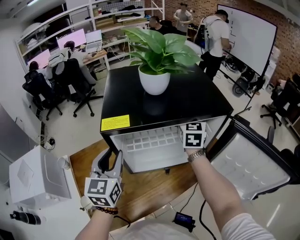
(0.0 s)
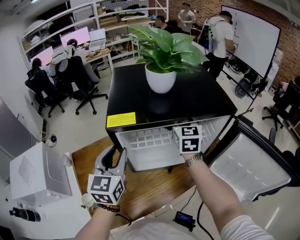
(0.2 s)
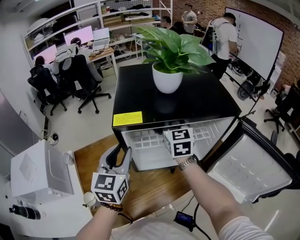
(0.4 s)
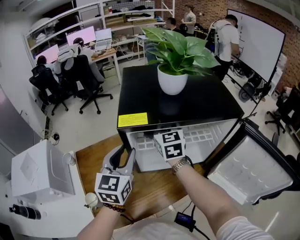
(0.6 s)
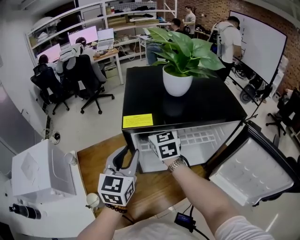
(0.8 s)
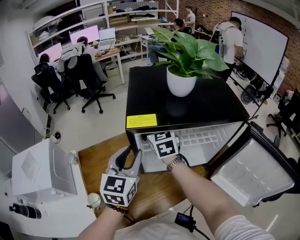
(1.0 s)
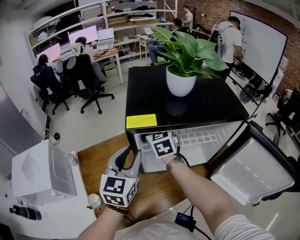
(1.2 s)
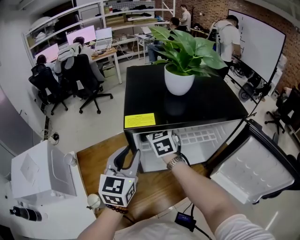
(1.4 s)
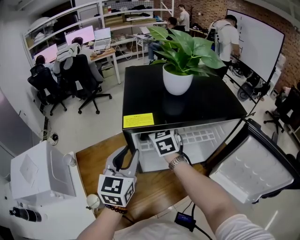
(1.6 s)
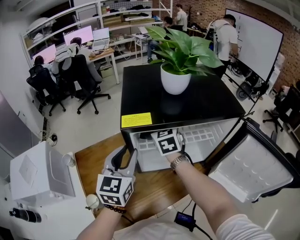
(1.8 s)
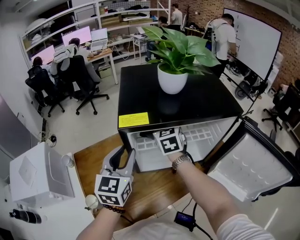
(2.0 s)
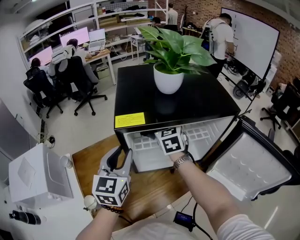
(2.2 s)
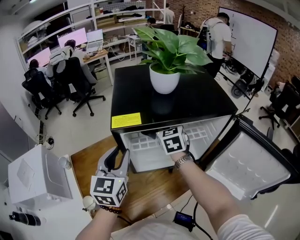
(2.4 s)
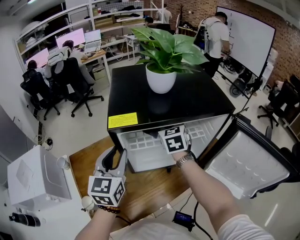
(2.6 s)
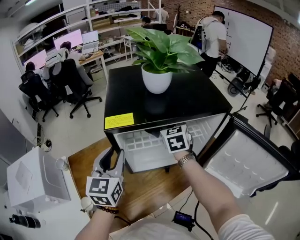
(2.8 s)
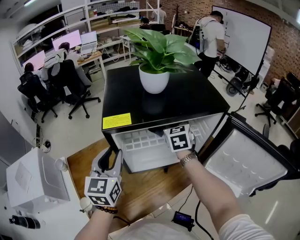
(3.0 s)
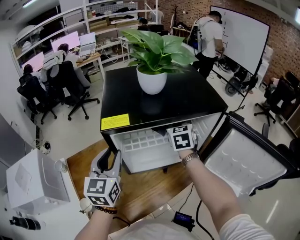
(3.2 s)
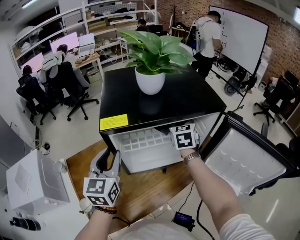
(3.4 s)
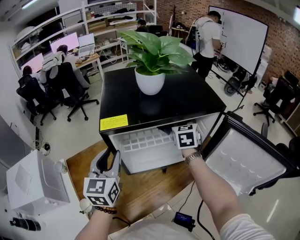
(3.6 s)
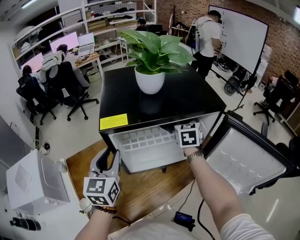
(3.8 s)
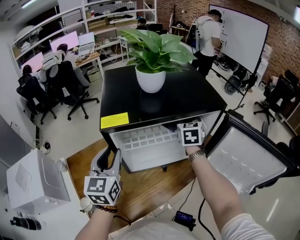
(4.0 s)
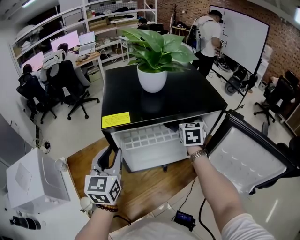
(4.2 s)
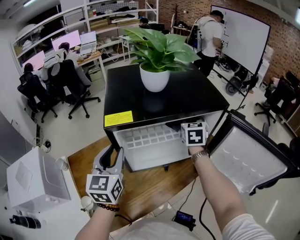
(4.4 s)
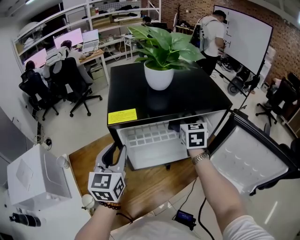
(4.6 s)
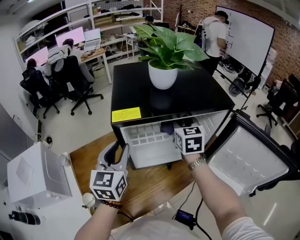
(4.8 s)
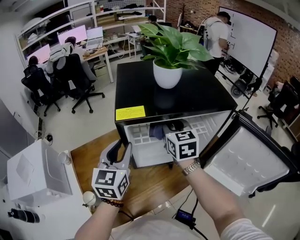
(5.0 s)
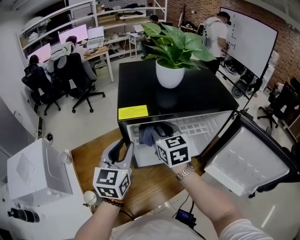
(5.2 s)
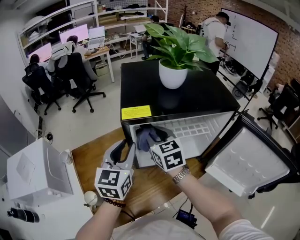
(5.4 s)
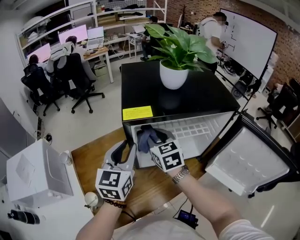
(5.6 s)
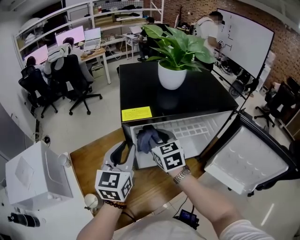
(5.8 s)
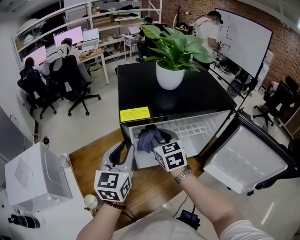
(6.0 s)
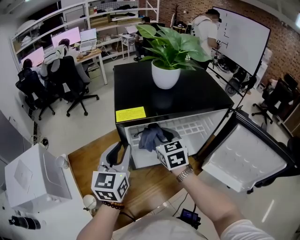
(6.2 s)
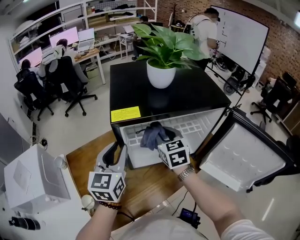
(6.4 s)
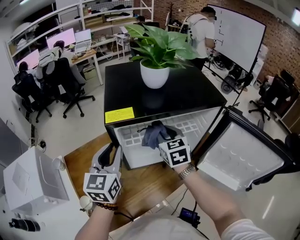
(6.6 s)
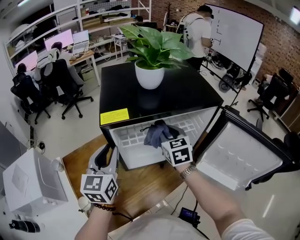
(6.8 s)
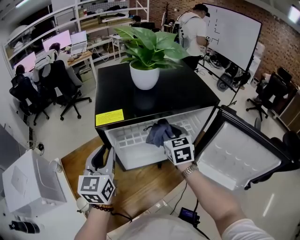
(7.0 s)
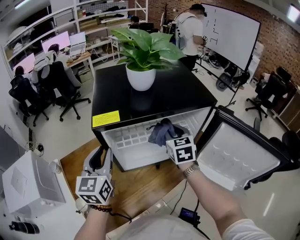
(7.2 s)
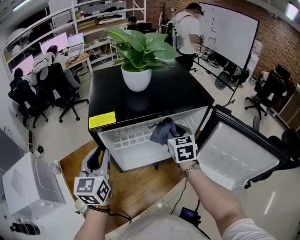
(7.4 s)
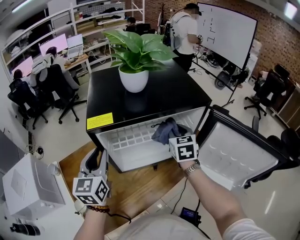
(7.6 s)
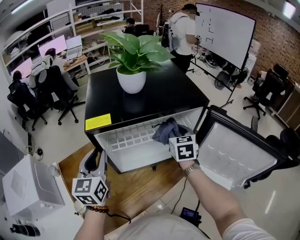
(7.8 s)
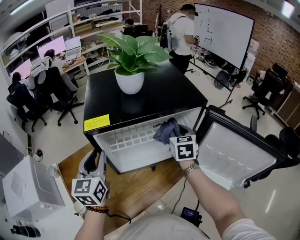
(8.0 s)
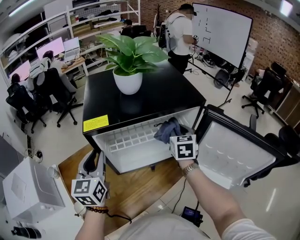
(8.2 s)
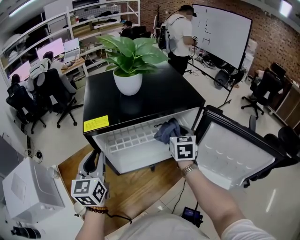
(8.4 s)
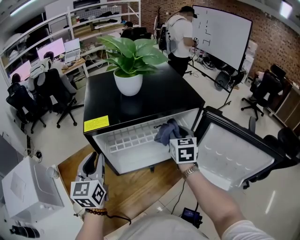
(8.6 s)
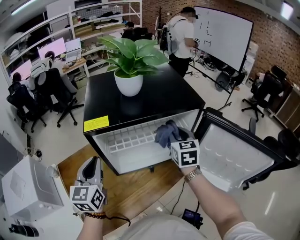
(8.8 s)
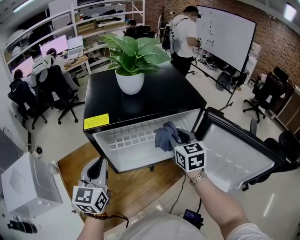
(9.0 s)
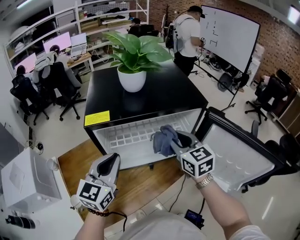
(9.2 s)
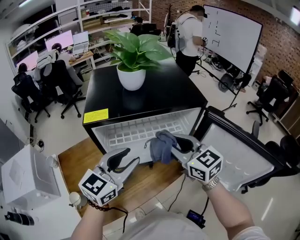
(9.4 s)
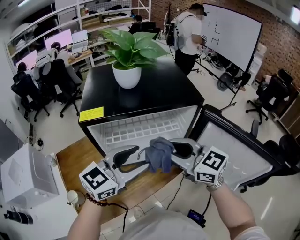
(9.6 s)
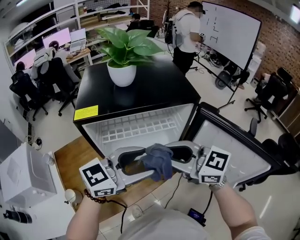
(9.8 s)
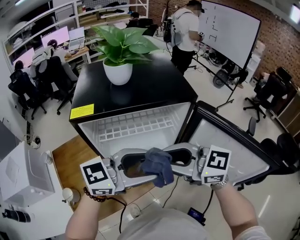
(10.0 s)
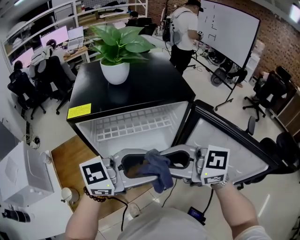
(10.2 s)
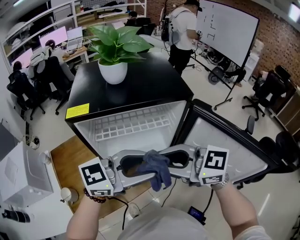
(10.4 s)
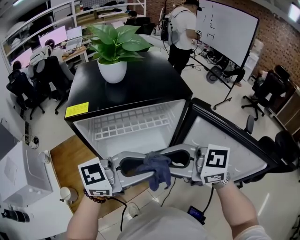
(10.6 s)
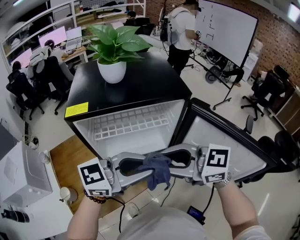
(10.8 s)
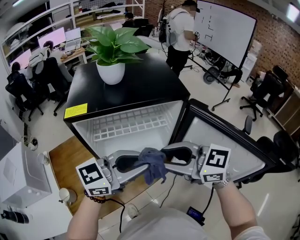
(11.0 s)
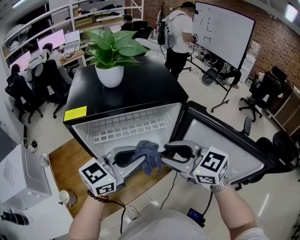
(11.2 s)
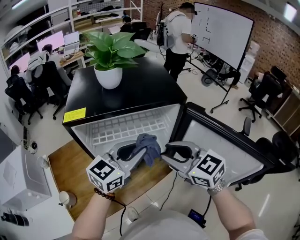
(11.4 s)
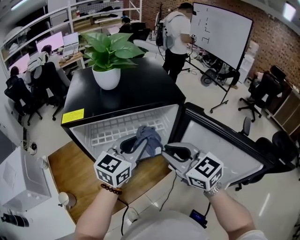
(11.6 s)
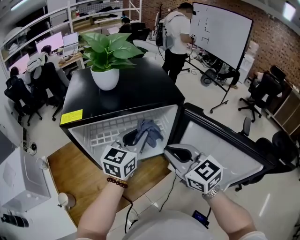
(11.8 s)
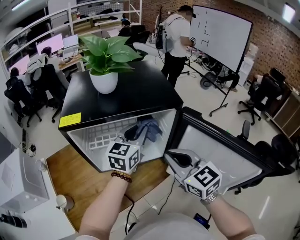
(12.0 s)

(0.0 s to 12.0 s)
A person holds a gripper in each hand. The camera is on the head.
0.0 s - 1.6 s: The right gripper travels to the left by some 20 cm, and rotates roughly 20 degrees.
1.6 s - 3.0 s: The right gripper travels to the right by some 15 cm.
3.0 s - 4.4 s: The right gripper is displaced to the right by approximately 10 cm.
4.4 s - 6.0 s: The right gripper travels to the left and backward by about 20 cm, and changes its angle by approximately 20 degrees.
6.0 s - 7.6 s: The right gripper moves to the right, approximately 20 cm.
7.6 s - 9.0 s: The right gripper changes place by some 5 cm.
9.0 s - 10.4 s: The right gripper moves approximately 20 cm, and changes its angle by approximately 60 degrees. The left gripper moves approximately 25 cm, changes its angle by about 60 degrees, and opens.
10.4 s - 12.0 s: The left gripper moves approximately 20 cm, changes its angle by about 40 degrees, and closes; the right gripper ends up some 10 cm from where it was, changes its angle by some 40 degrees, and closes its fingers.

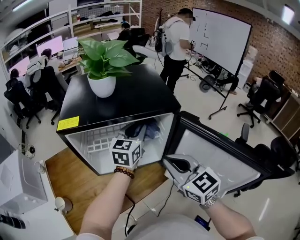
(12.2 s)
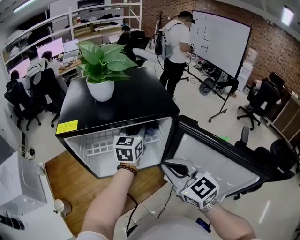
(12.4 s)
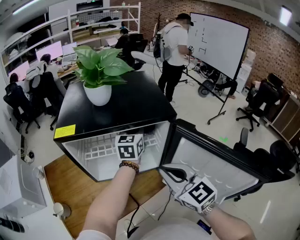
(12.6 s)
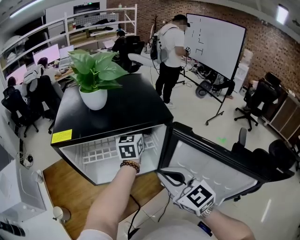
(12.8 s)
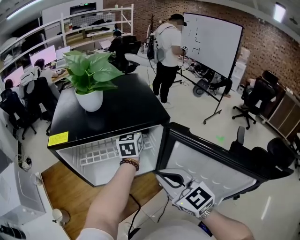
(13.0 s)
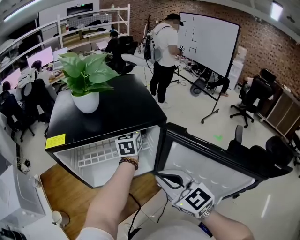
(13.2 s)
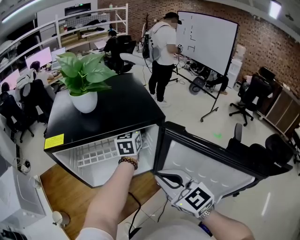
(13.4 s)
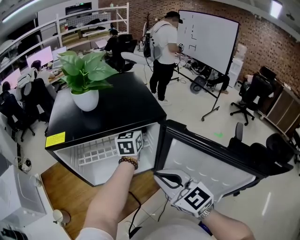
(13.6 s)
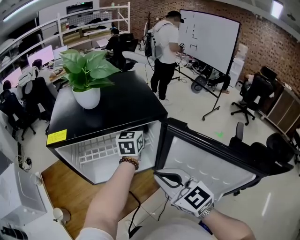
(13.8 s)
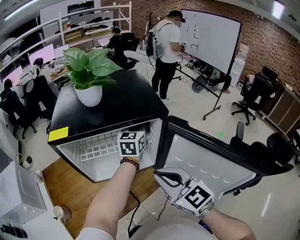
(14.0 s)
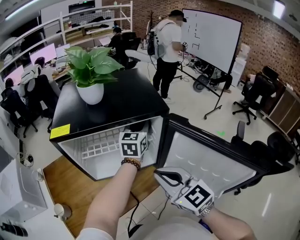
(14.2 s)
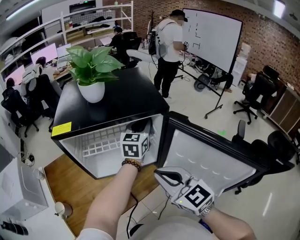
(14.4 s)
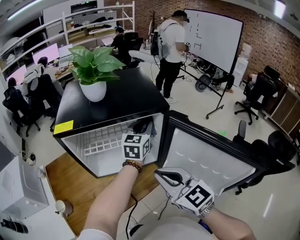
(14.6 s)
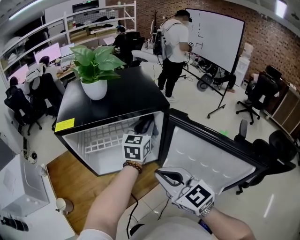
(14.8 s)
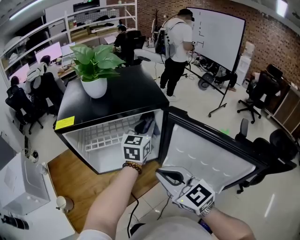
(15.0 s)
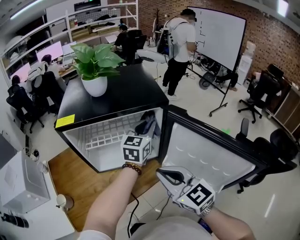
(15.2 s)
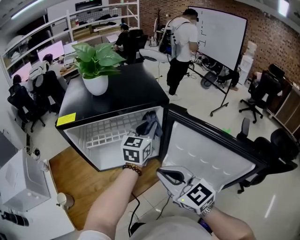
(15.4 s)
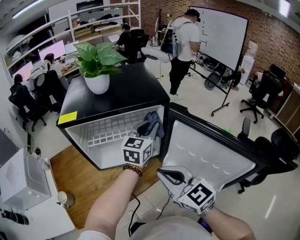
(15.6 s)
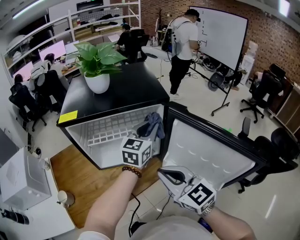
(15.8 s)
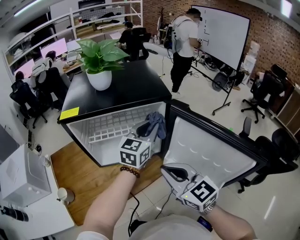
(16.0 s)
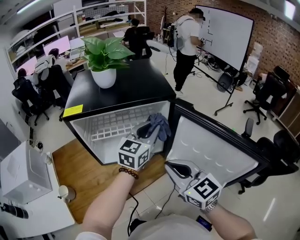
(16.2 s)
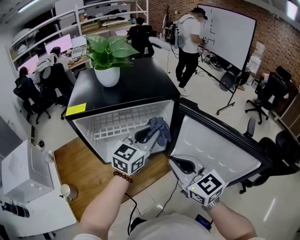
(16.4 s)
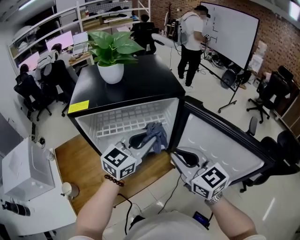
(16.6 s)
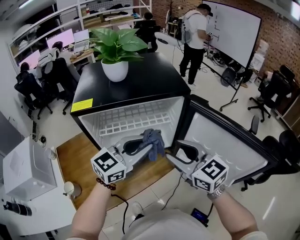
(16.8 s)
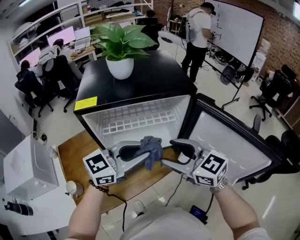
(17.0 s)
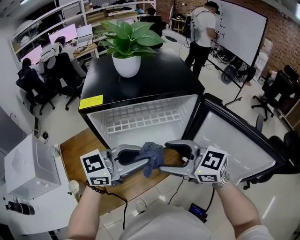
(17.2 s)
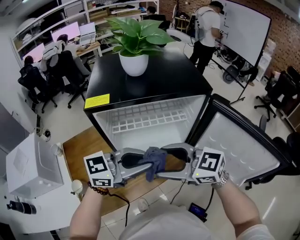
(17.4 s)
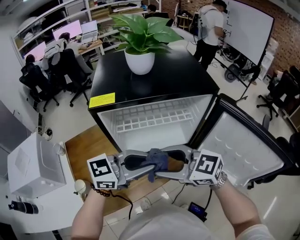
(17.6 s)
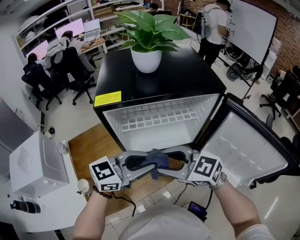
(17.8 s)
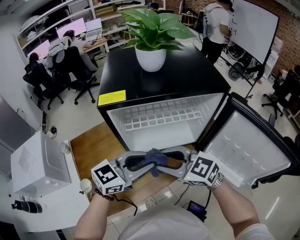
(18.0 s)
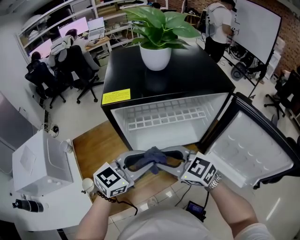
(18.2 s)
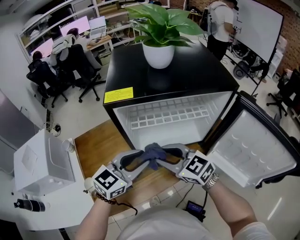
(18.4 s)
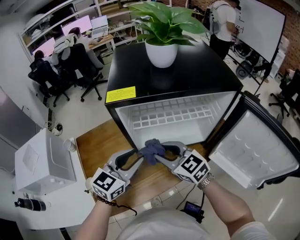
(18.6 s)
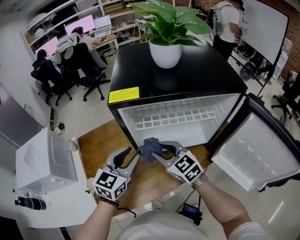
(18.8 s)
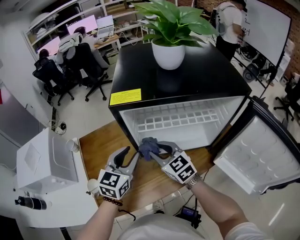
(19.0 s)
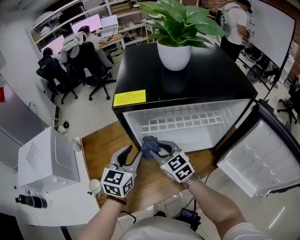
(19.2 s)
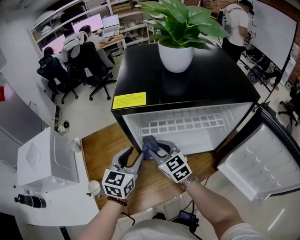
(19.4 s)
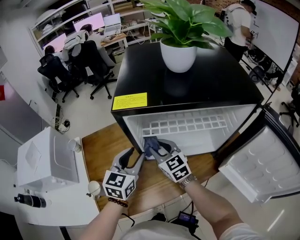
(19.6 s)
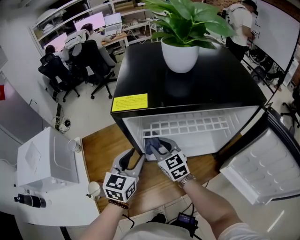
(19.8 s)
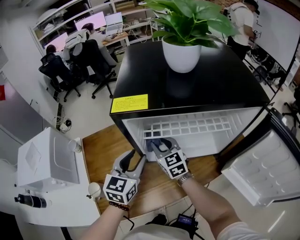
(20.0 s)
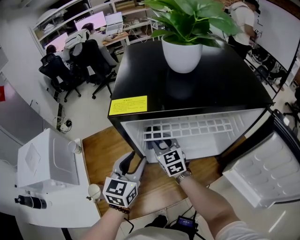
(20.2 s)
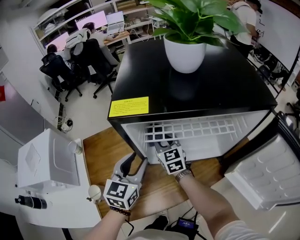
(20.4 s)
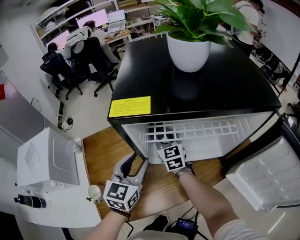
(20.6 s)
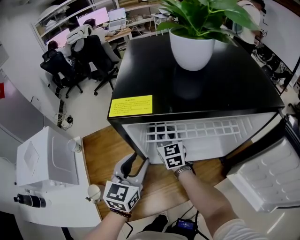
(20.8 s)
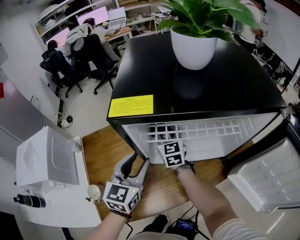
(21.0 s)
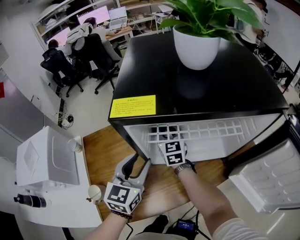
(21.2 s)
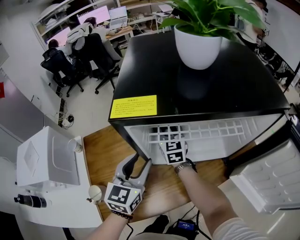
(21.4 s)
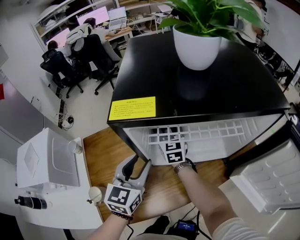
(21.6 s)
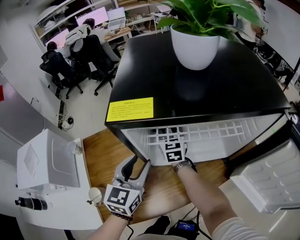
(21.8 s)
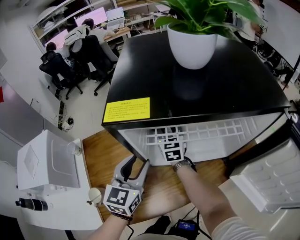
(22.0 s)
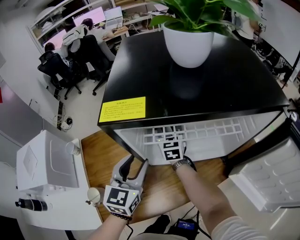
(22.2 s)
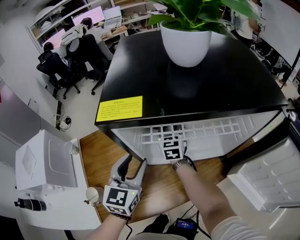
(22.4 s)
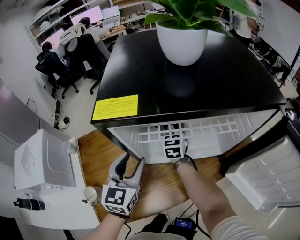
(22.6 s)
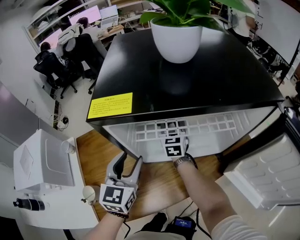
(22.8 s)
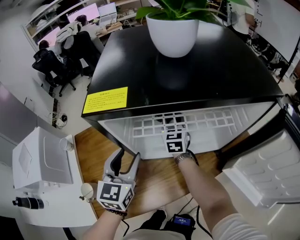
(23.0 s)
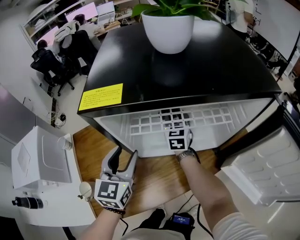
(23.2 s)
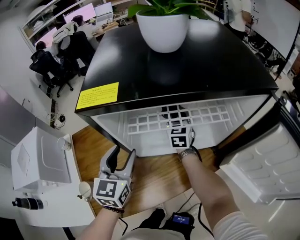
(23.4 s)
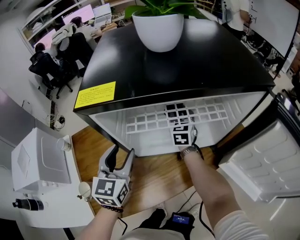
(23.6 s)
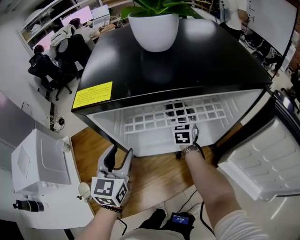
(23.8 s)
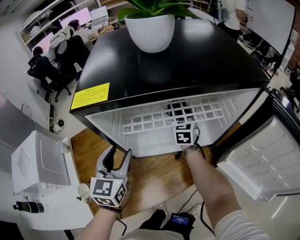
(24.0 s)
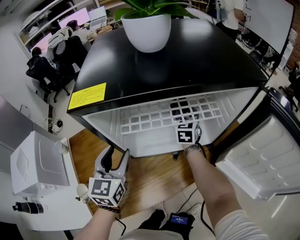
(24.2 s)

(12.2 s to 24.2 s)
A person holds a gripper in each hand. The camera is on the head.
12.2 s - 13.8 s: The left gripper shifts about 10 cm forward and to the right.
13.8 s - 15.2 s: The left gripper moves backward, approximately 10 cm.
15.2 s - 16.6 s: The left gripper travels backward and to the left by about 15 cm.
16.6 s - 18.2 s: The left gripper changes place by approximately 20 cm. Meanwhile the right gripper shifts by about 25 cm, turns by about 30 degrees, and opens up.
18.2 s - 19.8 s: The left gripper goes about 15 cm forward, to the left and downward, and rotates roughly 40 degrees. Meanwhile the right gripper is displaced forward and downward by some 20 cm, and turns by some 20 degrees.
19.8 s - 21.2 s: The right gripper moves forward, about 10 cm.
21.2 s - 22.6 s: The right gripper is displaced to the right by some 5 cm.
22.6 s - 24.2 s: The right gripper goes about 15 cm to the right.
